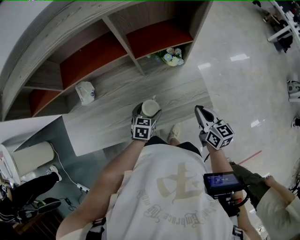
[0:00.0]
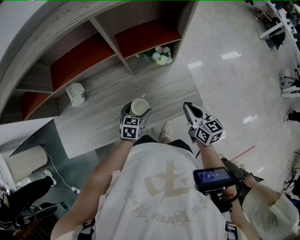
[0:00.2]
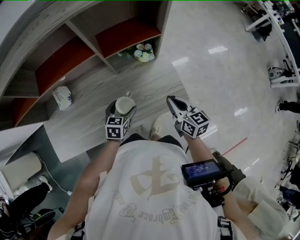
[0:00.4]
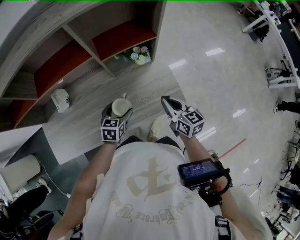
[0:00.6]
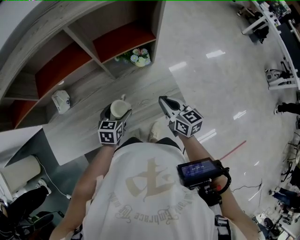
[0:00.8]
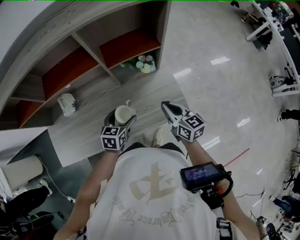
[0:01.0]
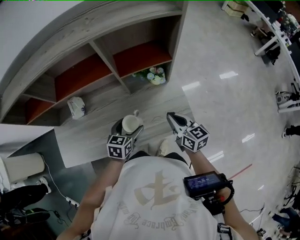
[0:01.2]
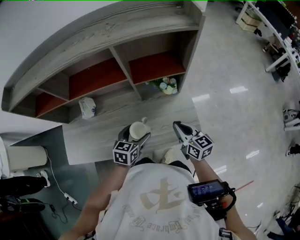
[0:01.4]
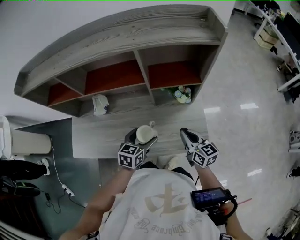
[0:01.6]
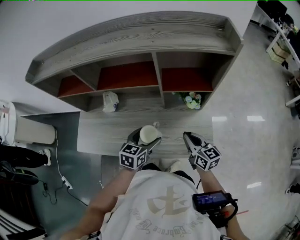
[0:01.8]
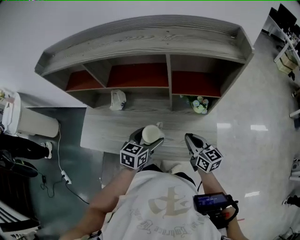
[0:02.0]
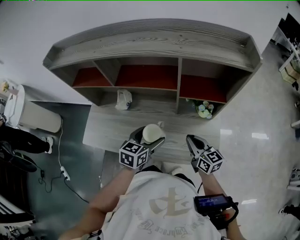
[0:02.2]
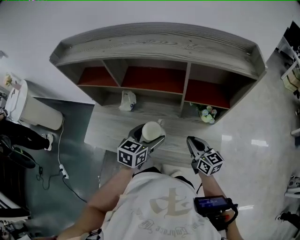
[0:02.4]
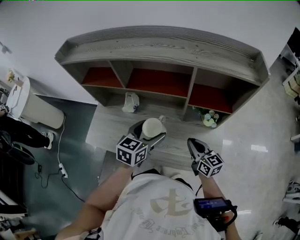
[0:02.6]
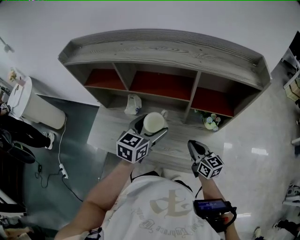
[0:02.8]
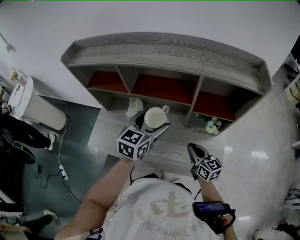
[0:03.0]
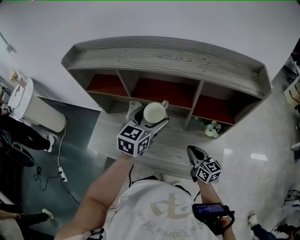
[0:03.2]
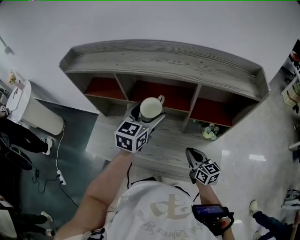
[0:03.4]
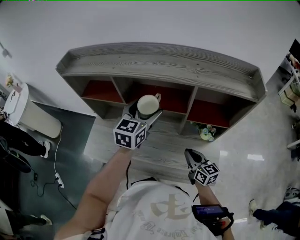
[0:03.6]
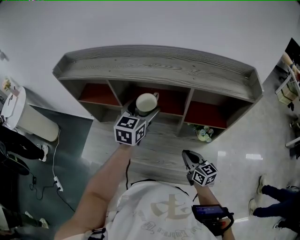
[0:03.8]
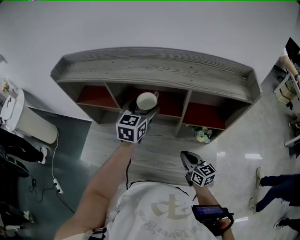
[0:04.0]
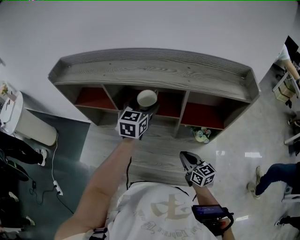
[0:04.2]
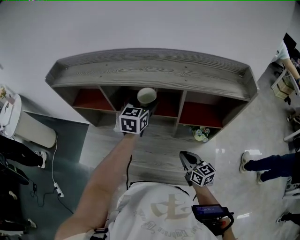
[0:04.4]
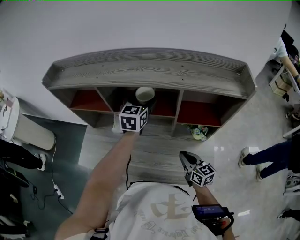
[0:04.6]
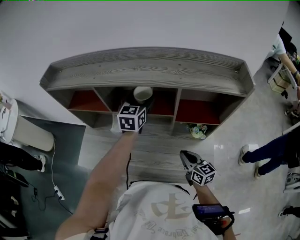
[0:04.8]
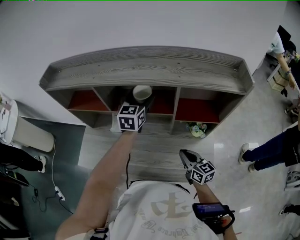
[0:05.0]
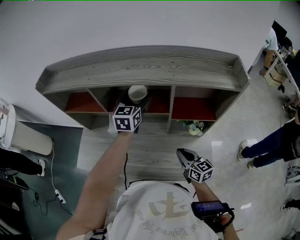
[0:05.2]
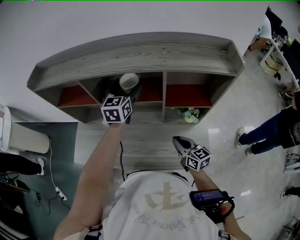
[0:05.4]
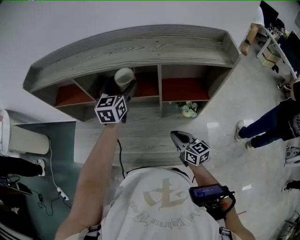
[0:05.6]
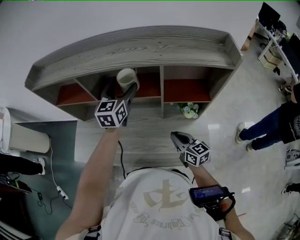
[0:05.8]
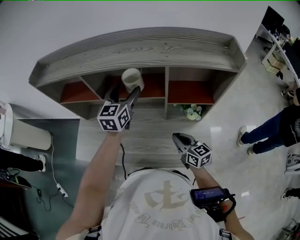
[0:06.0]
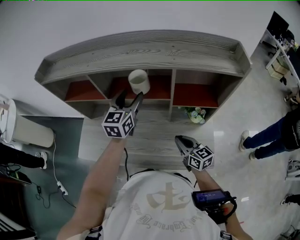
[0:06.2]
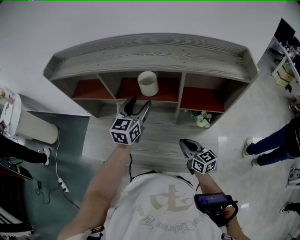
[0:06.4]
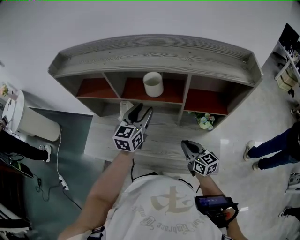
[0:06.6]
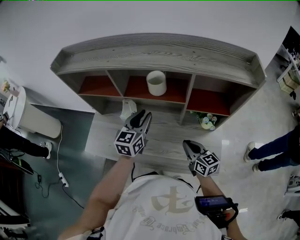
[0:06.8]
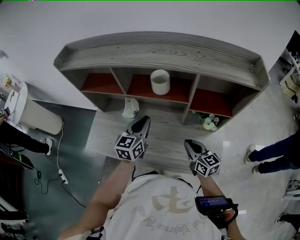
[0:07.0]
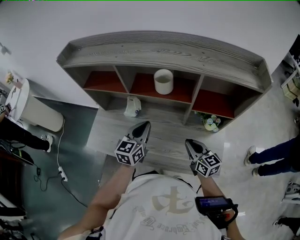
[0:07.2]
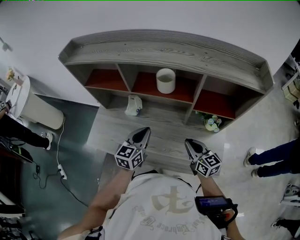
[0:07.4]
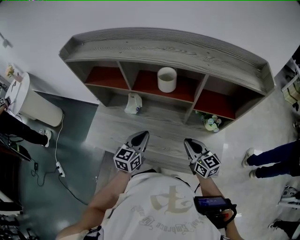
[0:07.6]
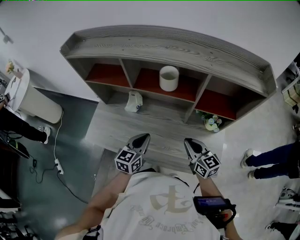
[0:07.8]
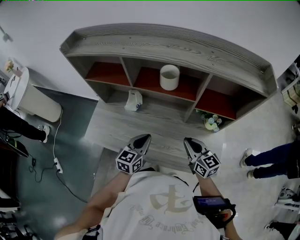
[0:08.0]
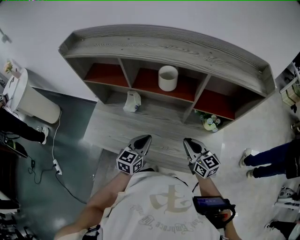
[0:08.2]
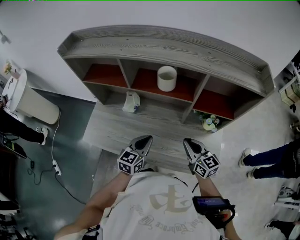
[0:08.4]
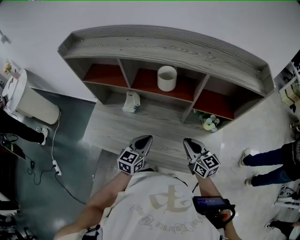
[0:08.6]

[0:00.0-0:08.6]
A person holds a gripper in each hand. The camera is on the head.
0:00.0 to 0:01.4: The right gripper ends up some 5 cm from where it was. The left gripper is displaced upward by approximately 10 cm.
0:01.4 to 0:02.8: The right gripper shifts about 10 cm to the left. The left gripper shifts roughly 20 cm upward and to the left, and swivels about 20 degrees.
0:02.8 to 0:04.4: The left gripper heads forward, covering roughly 20 cm.
0:04.4 to 0:05.8: The grippers move only a little.
0:05.8 to 0:07.2: The left gripper goes approximately 20 cm backward, downward and to the left, and closes its fingers.
0:07.2 to 0:08.6: The left gripper goes some 10 cm downward and backward.

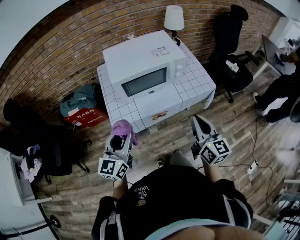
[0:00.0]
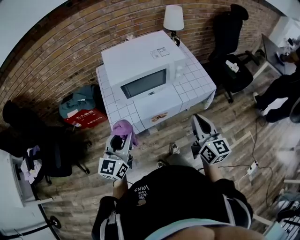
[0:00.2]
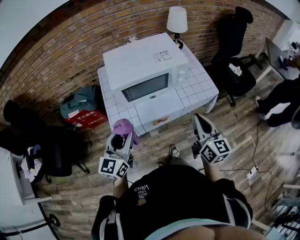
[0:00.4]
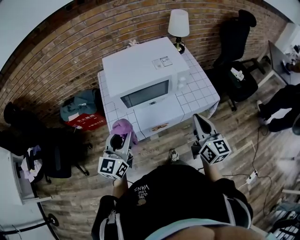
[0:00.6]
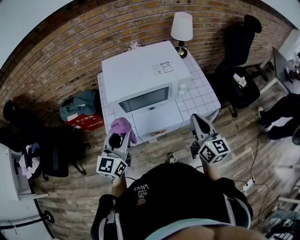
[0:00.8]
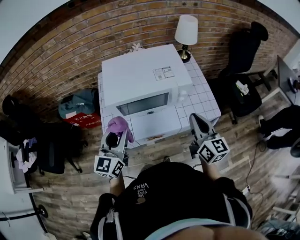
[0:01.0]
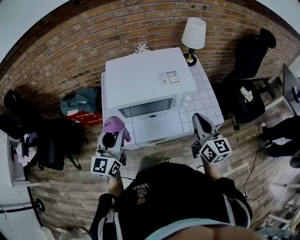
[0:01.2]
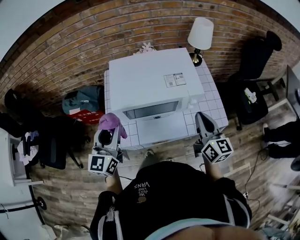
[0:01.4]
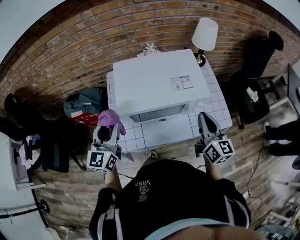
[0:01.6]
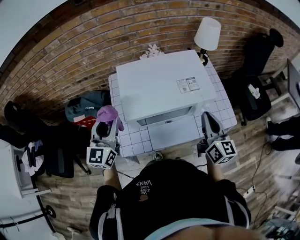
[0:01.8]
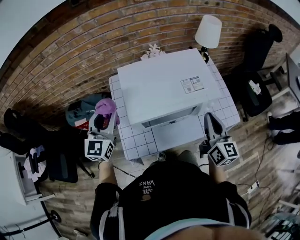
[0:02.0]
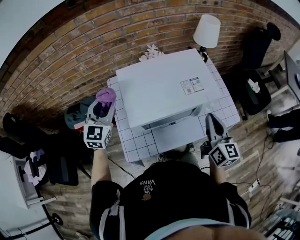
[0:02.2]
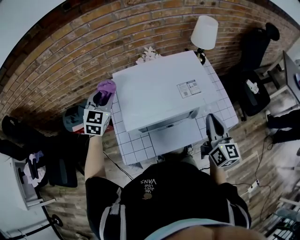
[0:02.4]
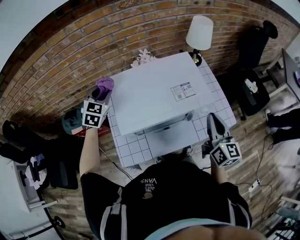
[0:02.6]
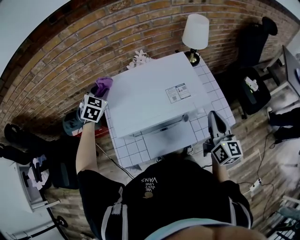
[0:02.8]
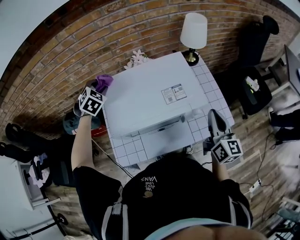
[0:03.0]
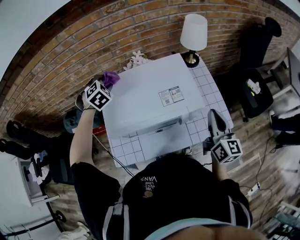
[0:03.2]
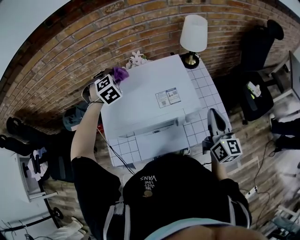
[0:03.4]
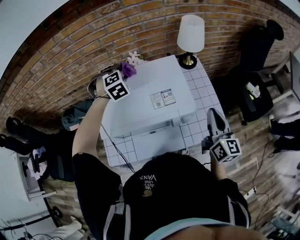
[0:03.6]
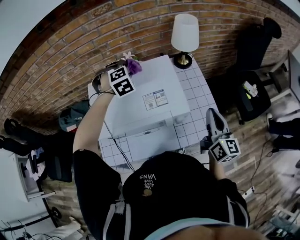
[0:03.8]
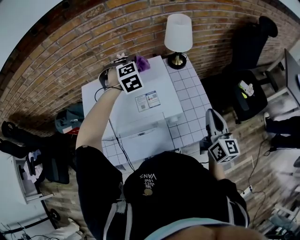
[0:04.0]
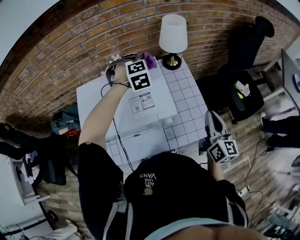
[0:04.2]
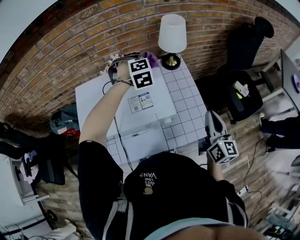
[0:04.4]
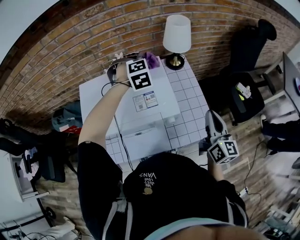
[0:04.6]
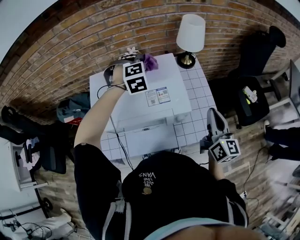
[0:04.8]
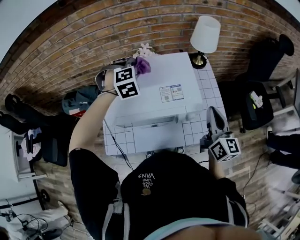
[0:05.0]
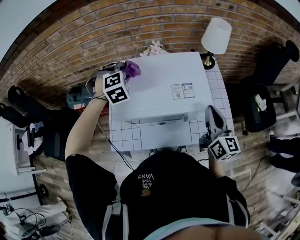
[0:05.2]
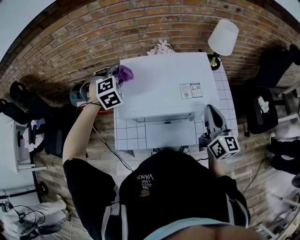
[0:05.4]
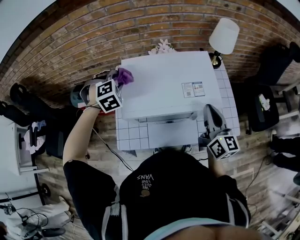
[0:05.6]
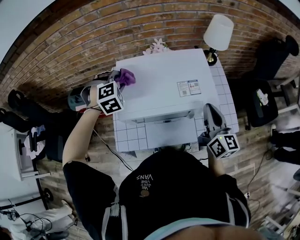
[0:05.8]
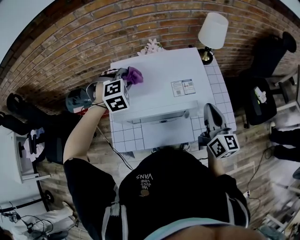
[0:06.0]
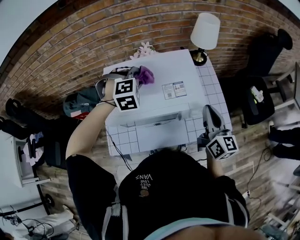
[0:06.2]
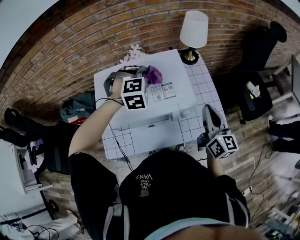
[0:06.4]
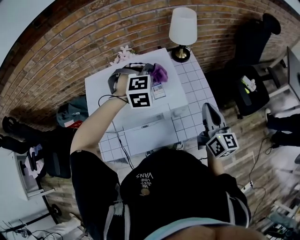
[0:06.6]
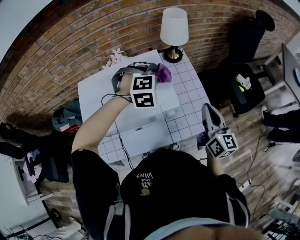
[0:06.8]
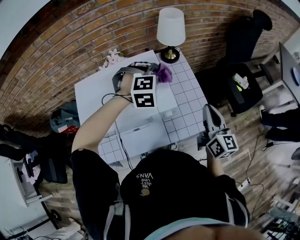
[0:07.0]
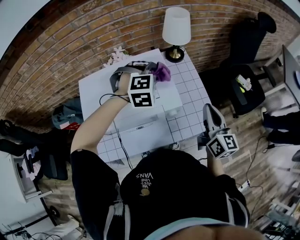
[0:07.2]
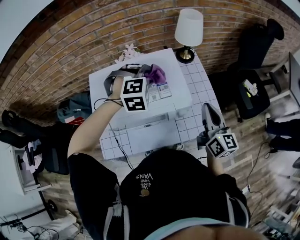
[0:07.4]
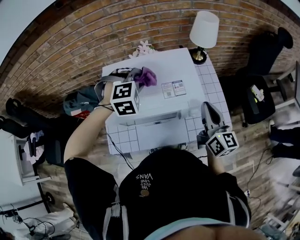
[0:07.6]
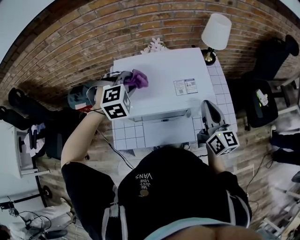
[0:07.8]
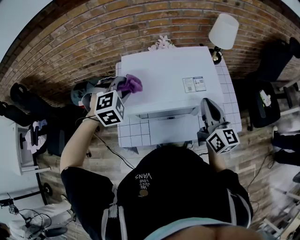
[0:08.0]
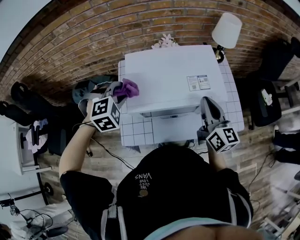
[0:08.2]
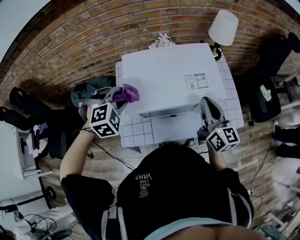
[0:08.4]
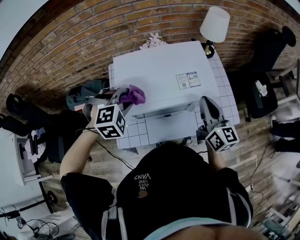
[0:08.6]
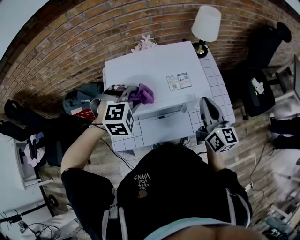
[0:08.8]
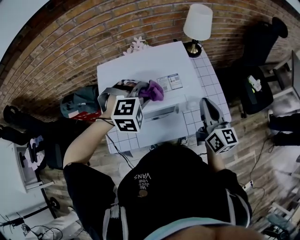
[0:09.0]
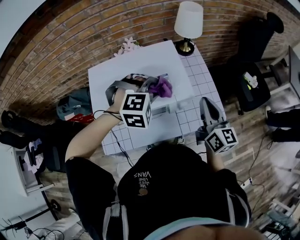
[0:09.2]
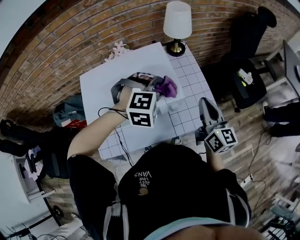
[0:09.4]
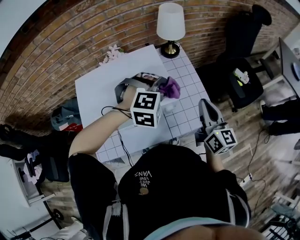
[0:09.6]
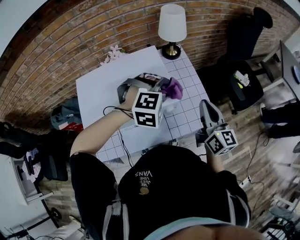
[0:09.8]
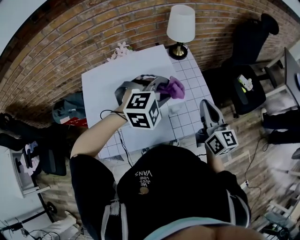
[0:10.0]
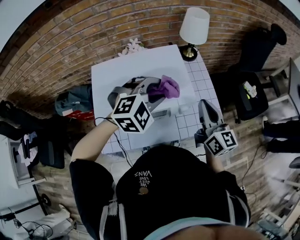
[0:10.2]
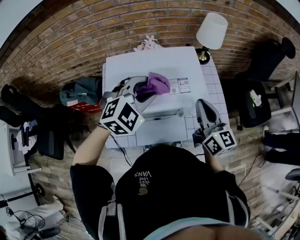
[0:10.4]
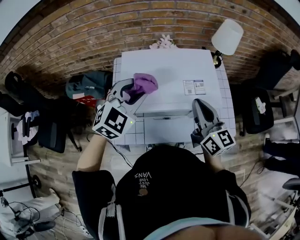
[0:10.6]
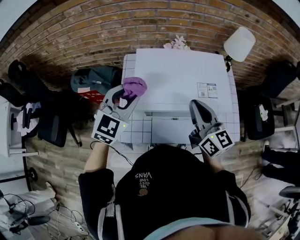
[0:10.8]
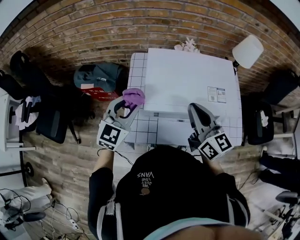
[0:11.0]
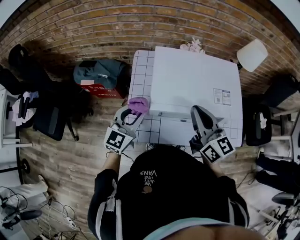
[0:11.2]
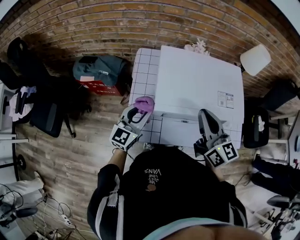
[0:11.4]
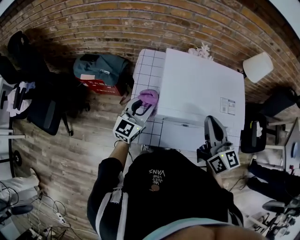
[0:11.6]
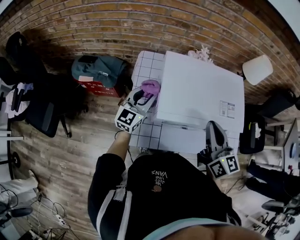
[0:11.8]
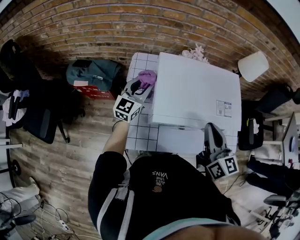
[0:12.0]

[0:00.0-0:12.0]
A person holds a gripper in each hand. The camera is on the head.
0:00.0 to 0:01.6: The grippers both shift forward by approximately 25 cm.
0:01.6 to 0:03.0: The right gripper travels to the right and forward by roughly 10 cm; the left gripper goes roughly 30 cm forward, and points its fingers approximately 50 degrees further downward.
0:03.0 to 0:04.4: The right gripper moves to the right, approximately 15 cm. Meanwhile the left gripper heads to the right, covering some 35 cm, and swivels approximately 30 degrees.
0:04.4 to 0:06.0: The right gripper shifts about 20 cm to the left. Meanwhile the left gripper heads to the left and backward, covering about 30 cm.
0:06.0 to 0:07.6: The left gripper goes to the right and returns, some 30 cm each way. The right gripper goes to the right and returns, some 15 cm each way.
0:07.6 to 0:09.0: The right gripper moves roughly 10 cm to the left and comes back, while the left gripper moves backward, some 5 cm, and reaches some 15 cm to the left, then returns.
0:09.0 to 0:10.4: The left gripper travels upward by approximately 5 cm, travels to the right and back again, about 15 cm each way, and swivels some 30 degrees; the right gripper reaches about 10 cm to the right, then returns.
0:10.4 to 0:12.0: The left gripper is displaced to the left and downward by roughly 30 cm, and points its fingers roughly 30 degrees further upward, while the right gripper moves to the left, some 20 cm.

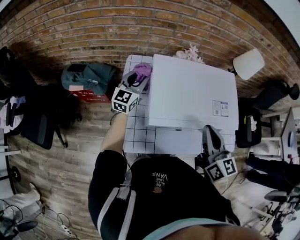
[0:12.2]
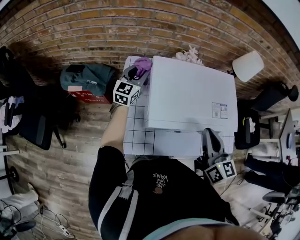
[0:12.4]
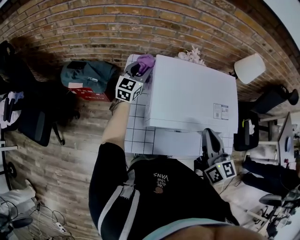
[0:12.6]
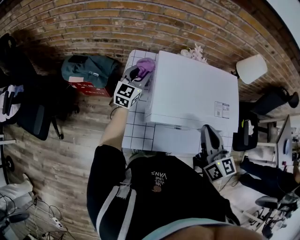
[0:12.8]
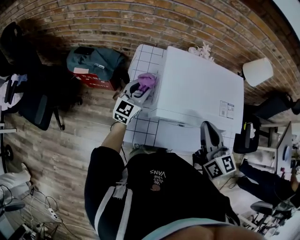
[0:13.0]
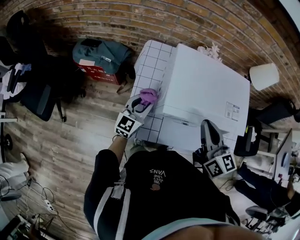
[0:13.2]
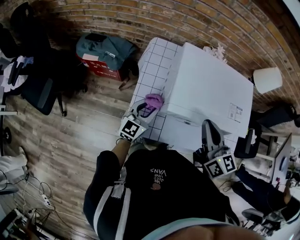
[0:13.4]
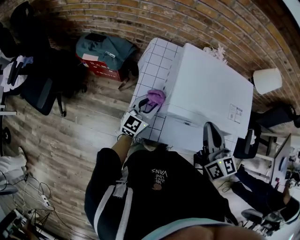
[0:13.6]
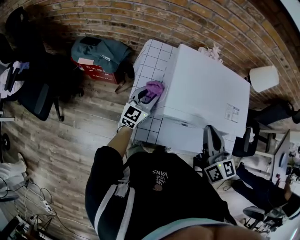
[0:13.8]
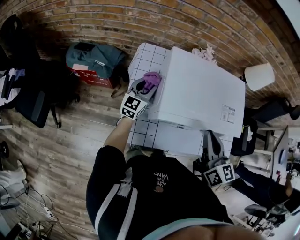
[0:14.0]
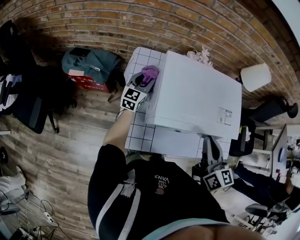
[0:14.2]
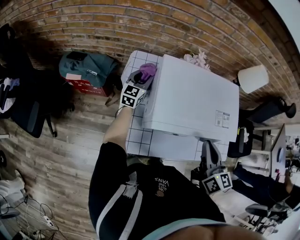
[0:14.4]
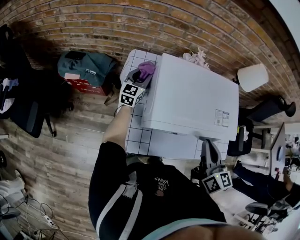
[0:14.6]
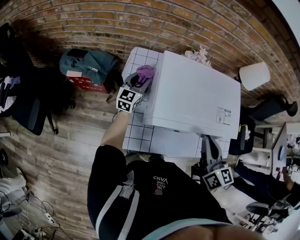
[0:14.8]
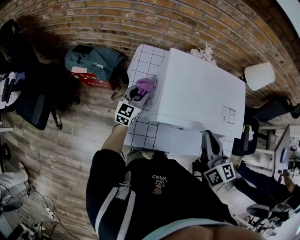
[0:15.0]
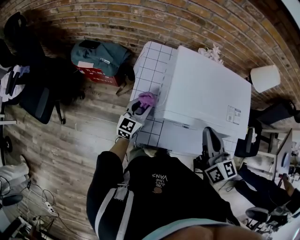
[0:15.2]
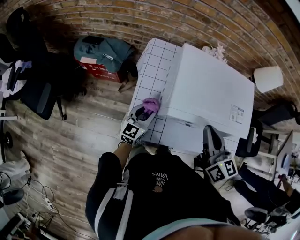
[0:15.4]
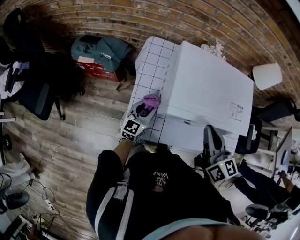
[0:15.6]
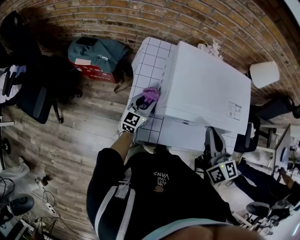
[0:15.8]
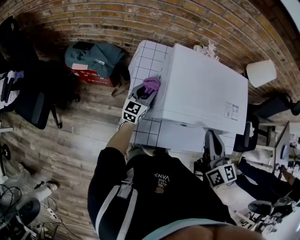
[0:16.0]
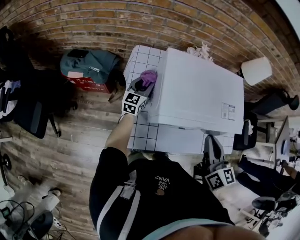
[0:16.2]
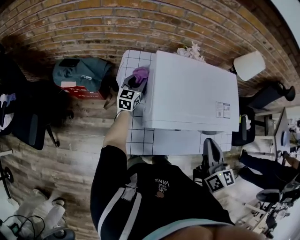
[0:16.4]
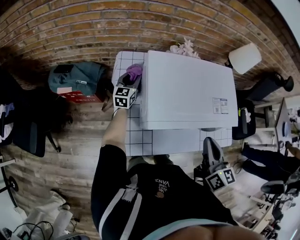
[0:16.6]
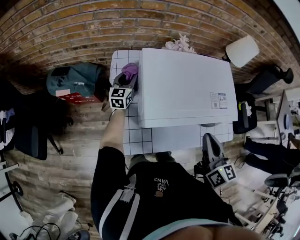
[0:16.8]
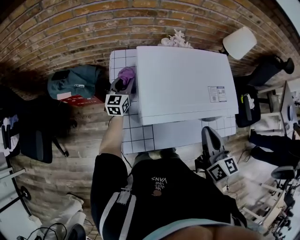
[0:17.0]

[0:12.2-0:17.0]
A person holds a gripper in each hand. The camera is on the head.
0:12.2 to 0:13.8: The left gripper swings forward and backward, about 25 cm each way, with 2 reversals.
0:13.8 to 0:15.4: The left gripper reaches approximately 15 cm forward, then returns.
0:15.4 to 0:17.0: The left gripper shifts about 20 cm forward, while the right gripper is displaced to the right by roughly 10 cm.
